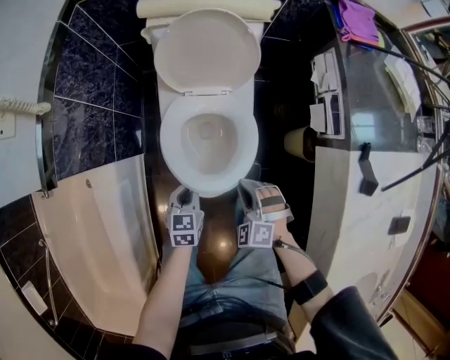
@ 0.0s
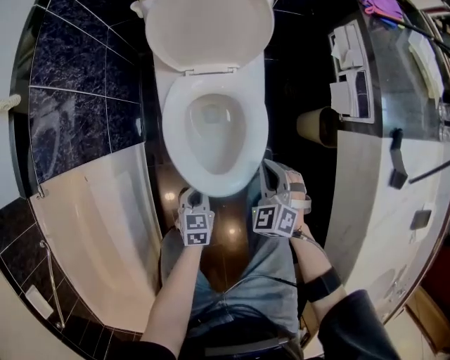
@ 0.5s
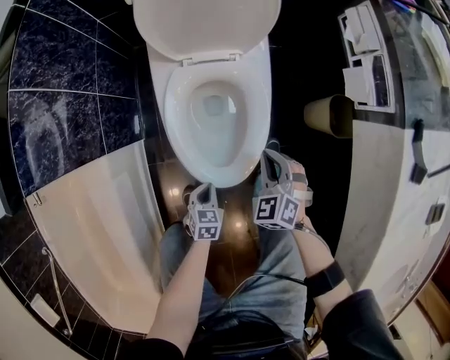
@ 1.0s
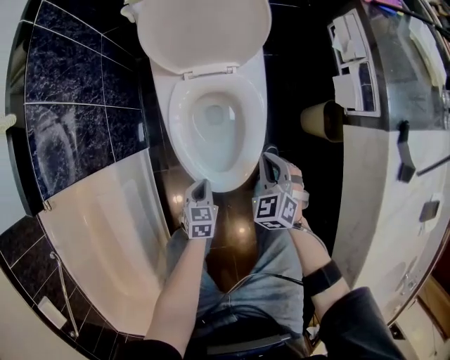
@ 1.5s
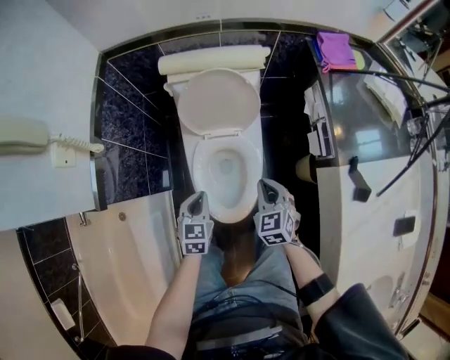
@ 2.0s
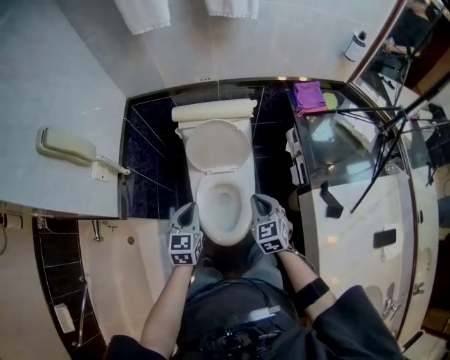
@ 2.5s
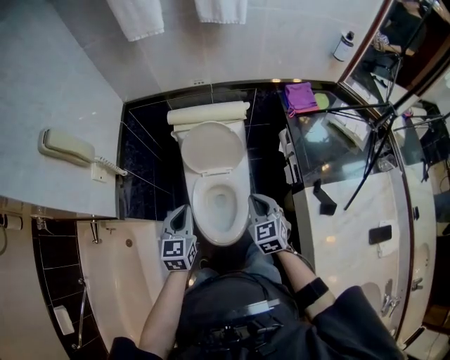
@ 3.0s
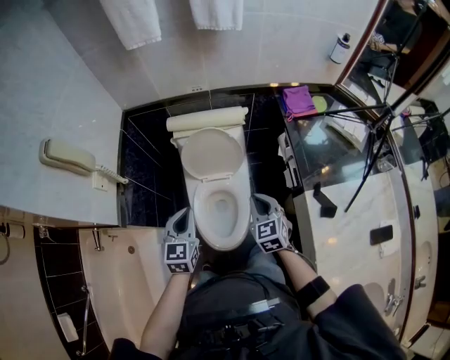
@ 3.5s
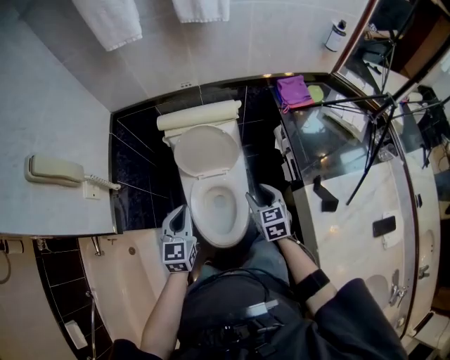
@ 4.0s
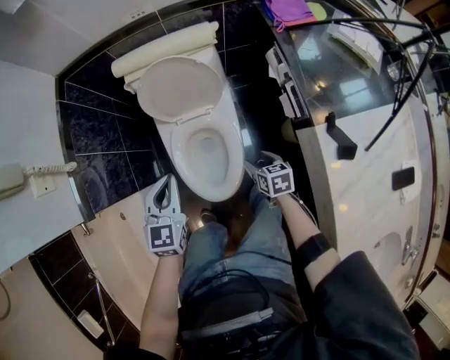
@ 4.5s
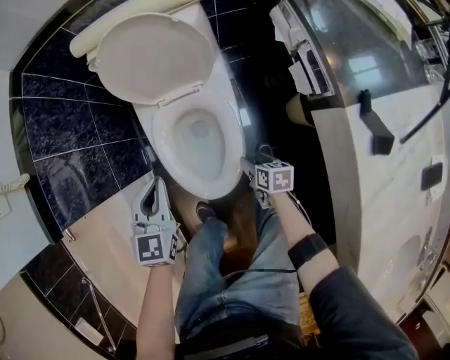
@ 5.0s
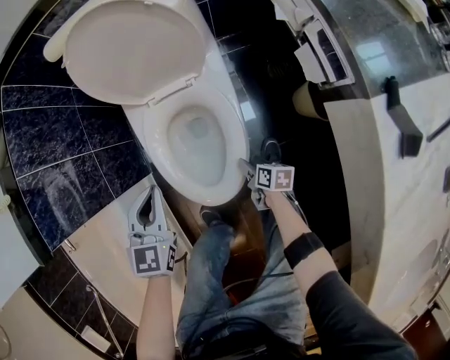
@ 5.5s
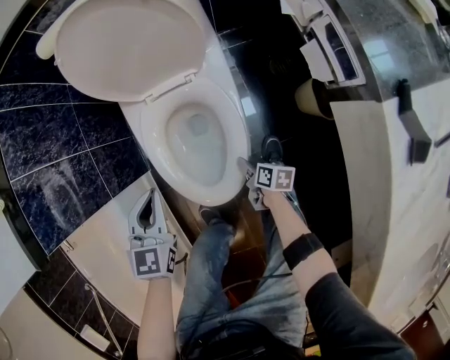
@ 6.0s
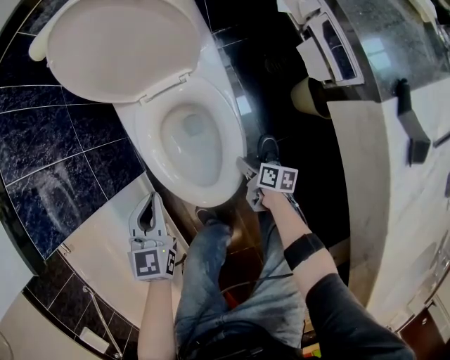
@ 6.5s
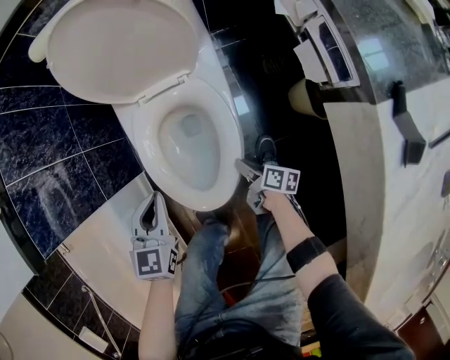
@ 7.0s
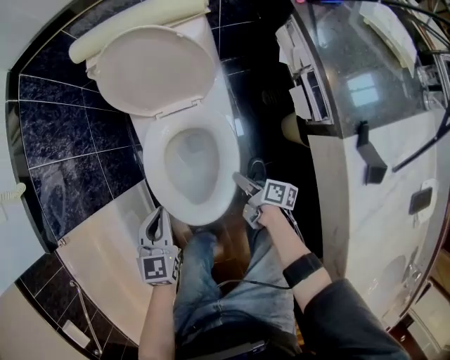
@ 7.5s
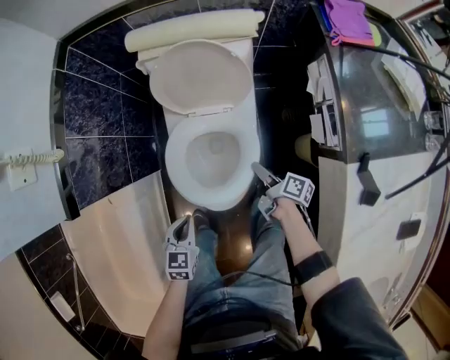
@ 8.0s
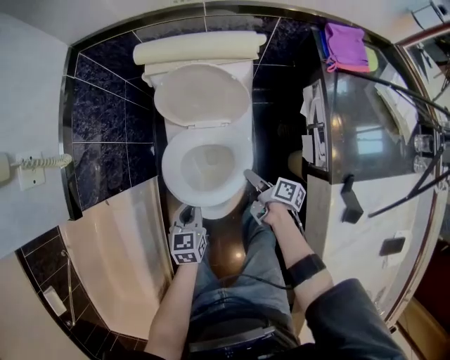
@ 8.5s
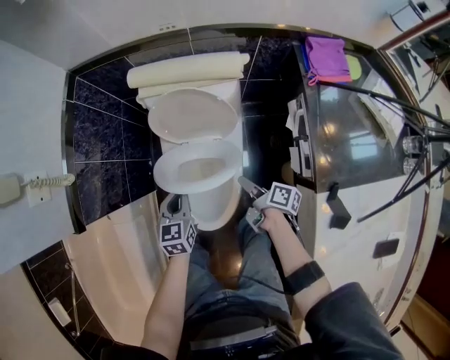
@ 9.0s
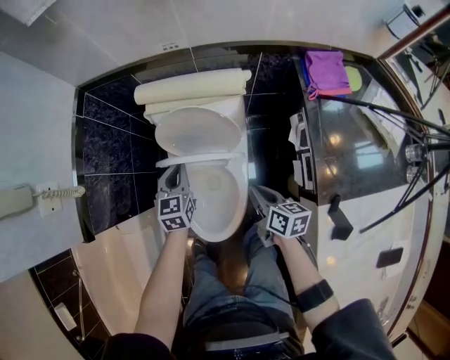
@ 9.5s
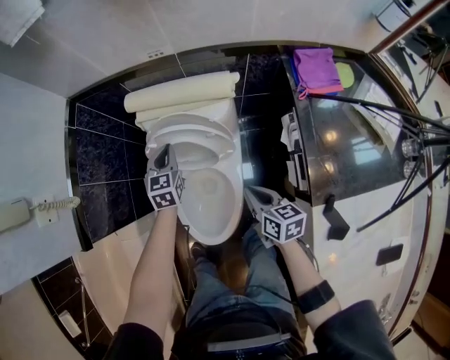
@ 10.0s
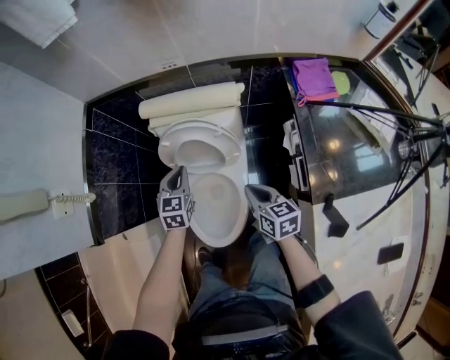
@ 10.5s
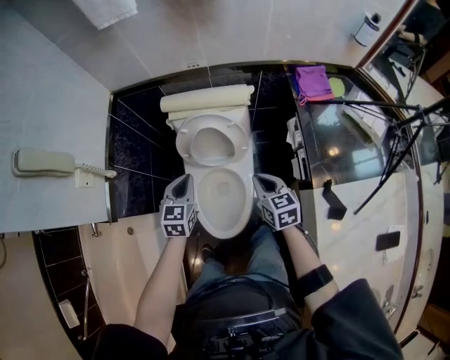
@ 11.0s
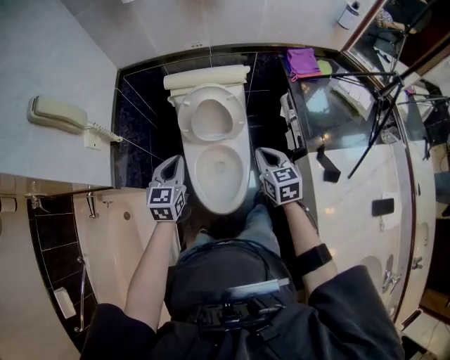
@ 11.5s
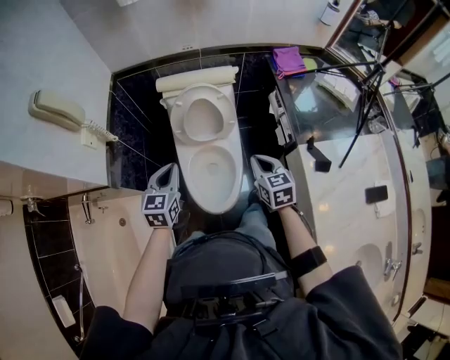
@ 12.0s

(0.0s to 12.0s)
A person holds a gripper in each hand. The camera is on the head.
0.0s - 2.0s: Both grippers move upward and forward, about 15 cm. The right gripper twists roughly 40 degrees clockwise, seen from behind.
2.0s - 4.0s: The left gripper is displaced upward by about 25 cm. Meanwhile the right gripper moves upward and to the right, some 15 cm, and opens.
4.0s - 6.0s: The right gripper heads downward, covering about 50 cm, and twists roughly 60 degrees clockwise, seen from behind. Meanwhile the left gripper goes some 30 cm downward.
6.0s - 8.0s: The right gripper moves upward and forward, roughly 25 cm, and changes its angle by some 20 degrees. Meanwhile the left gripper travels backward by approximately 10 cm.
8.0s - 10.0s: The left gripper shifts about 35 cm forward, and changes its angle by roughly 20 degrees. Meanwhile the right gripper travels upward and forward by about 20 cm, rotates around the line of its fingers by about 50 degrees, counterclockwise from behind, and closes up.
10.0s - 12.0s: The left gripper heads backward and upward, covering about 35 cm, while the right gripper moves backward and upward, roughly 20 cm, and rotates some 30 degrees.

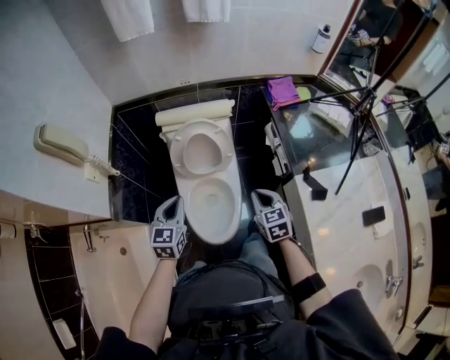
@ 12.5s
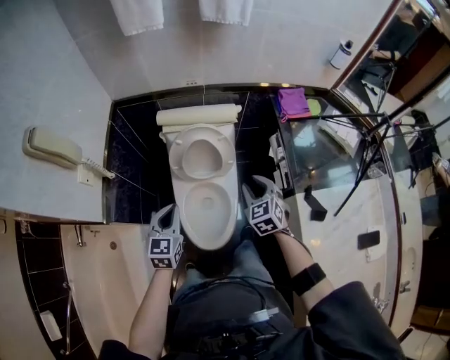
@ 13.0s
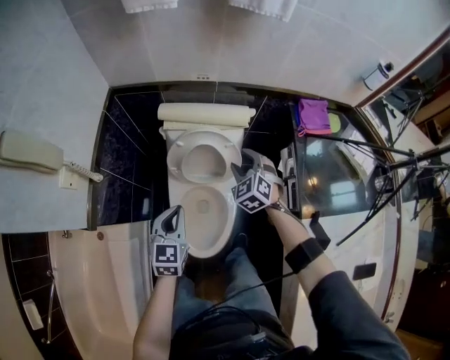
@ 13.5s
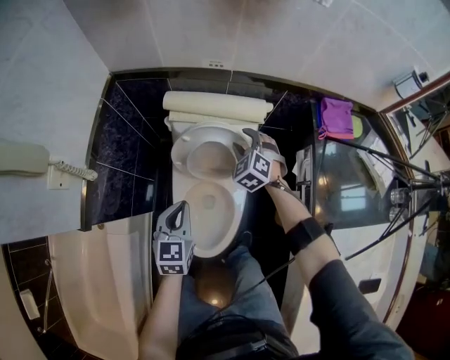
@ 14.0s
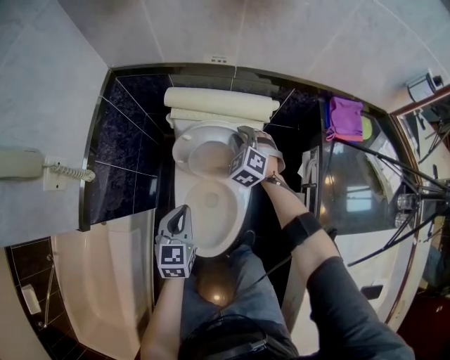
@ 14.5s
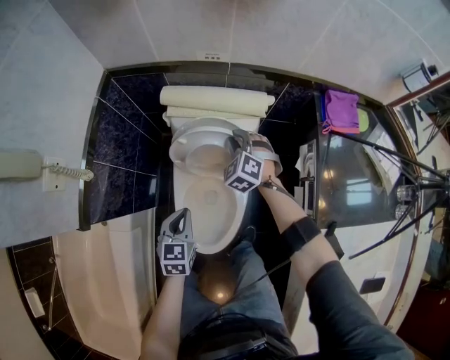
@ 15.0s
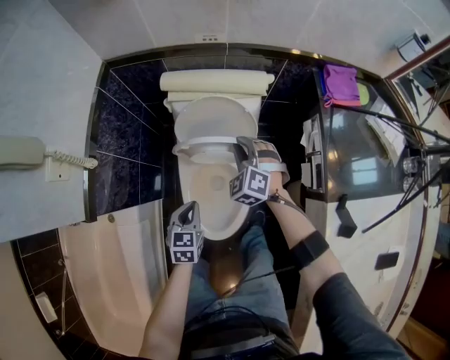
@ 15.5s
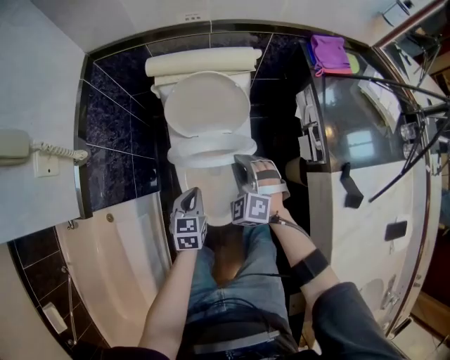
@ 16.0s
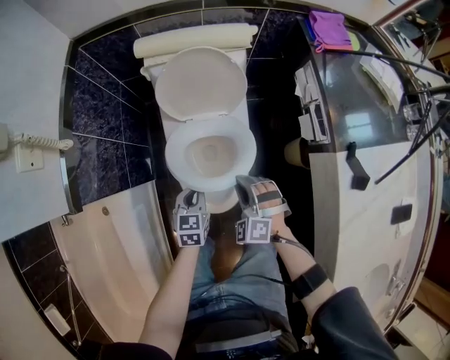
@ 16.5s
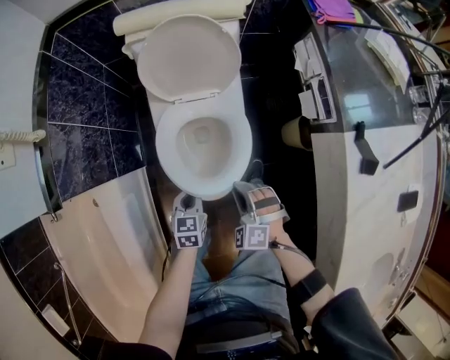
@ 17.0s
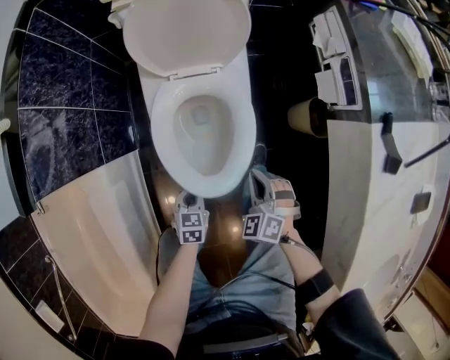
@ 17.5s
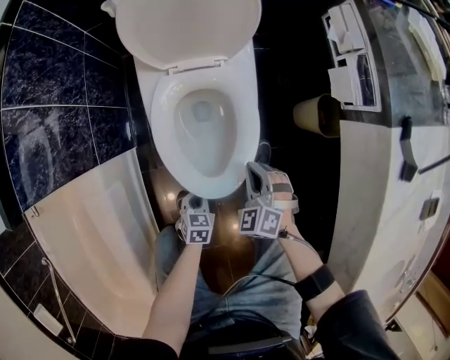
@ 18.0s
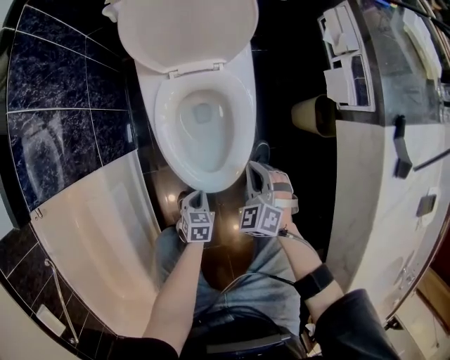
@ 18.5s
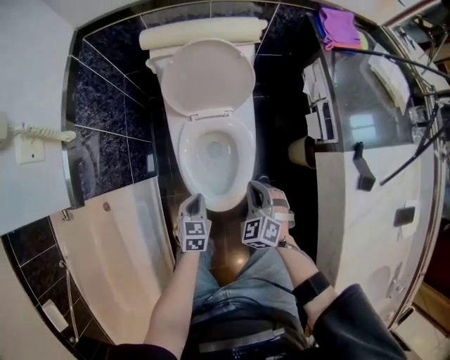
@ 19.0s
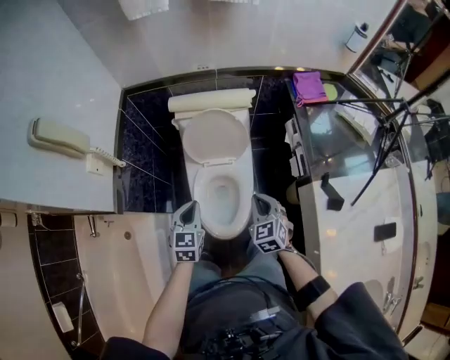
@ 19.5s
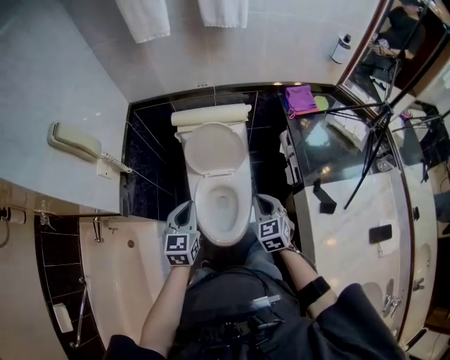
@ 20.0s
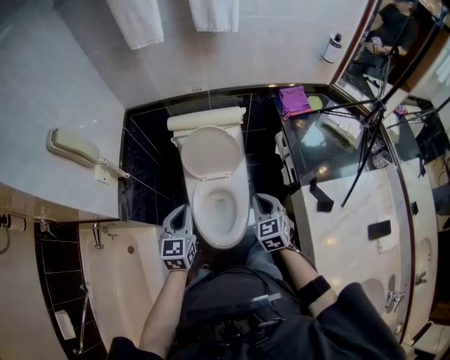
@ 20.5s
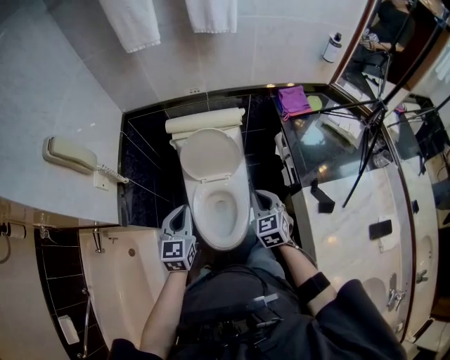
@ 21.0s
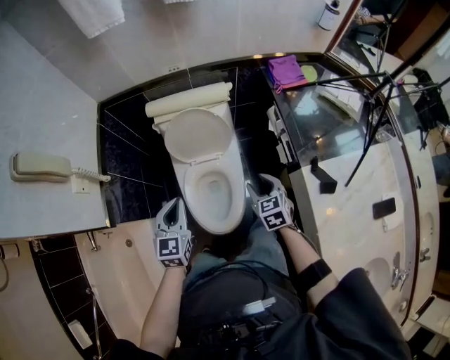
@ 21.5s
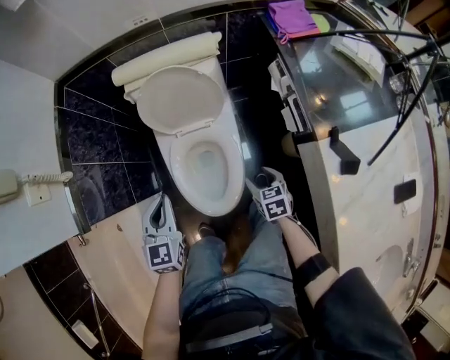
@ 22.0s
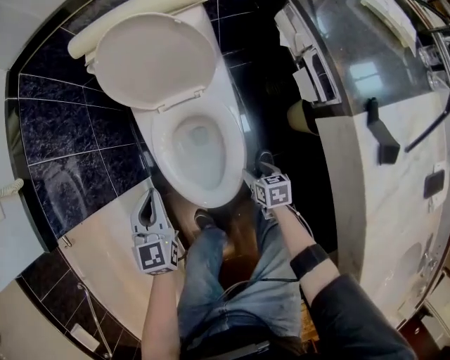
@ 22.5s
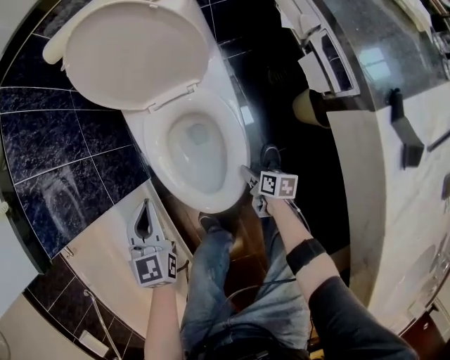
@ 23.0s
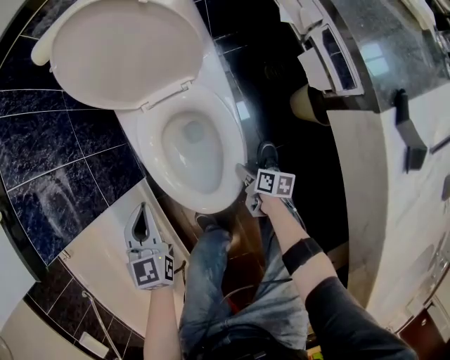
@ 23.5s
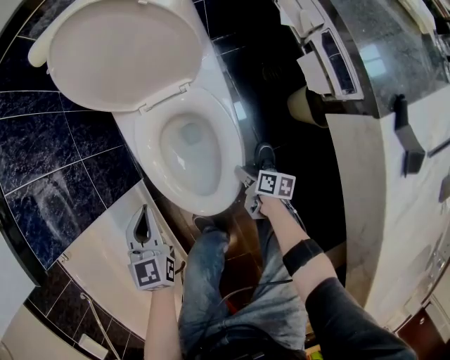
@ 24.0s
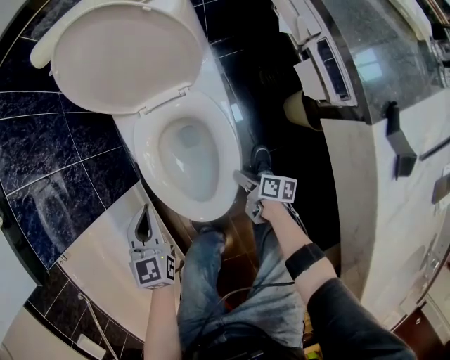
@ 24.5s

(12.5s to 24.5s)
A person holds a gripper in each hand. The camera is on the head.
12.5s - 14.5s: The right gripper shifts approximately 40 cm forward, twists roughly 50 degrees counterclockwise, seen from behind, and opens, then closes once more, while the left gripper heads downward and forward, covering roughly 15 cm.
14.5s - 16.5s: The left gripper shifts some 20 cm downward and backward, while the right gripper shifts some 35 cm backward.
16.5s - 18.5s: The left gripper goes some 30 cm downward and backward, and changes its angle by approximately 30 degrees. Meanwhile the right gripper is displaced downward by approximately 15 cm, and swivels approximately 20 degrees.
18.5s - 20.5s: The grippers both shift upward by approximately 50 cm. The right gripper rotates some 40 degrees, while the left gripper tips its fingers upward by about 40 degrees.
20.5s - 22.5s: The left gripper shifts about 30 cm downward; the right gripper shifts some 50 cm downward, rolls clockwise, seen from behind, by roughly 40 degrees, and opens up.
22.5s - 24.5s: Both grippers travel together downward, approximately 5 cm. The right gripper changes its angle by approximately 40 degrees, and closes up.

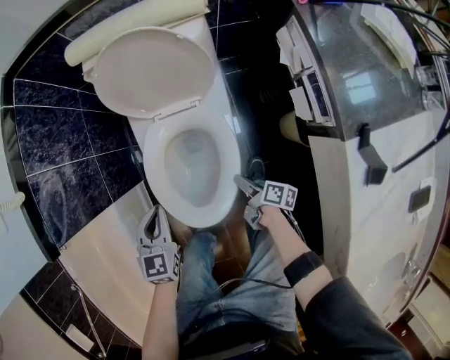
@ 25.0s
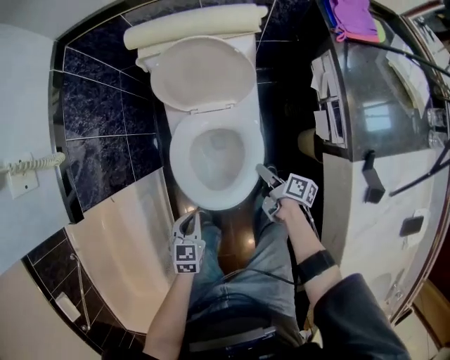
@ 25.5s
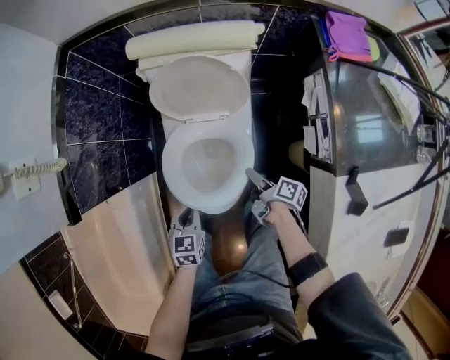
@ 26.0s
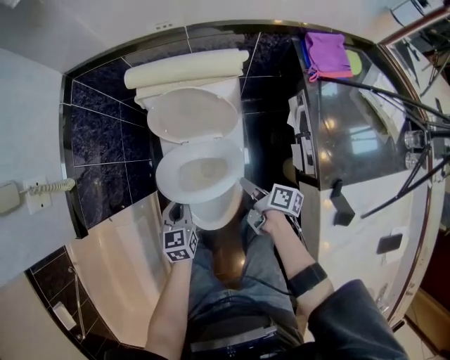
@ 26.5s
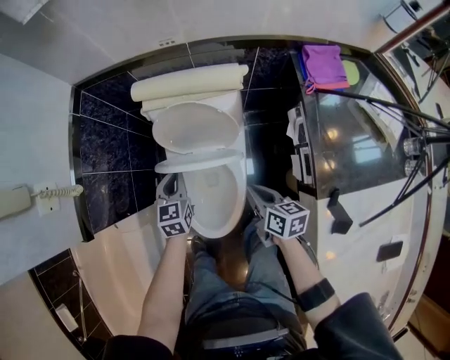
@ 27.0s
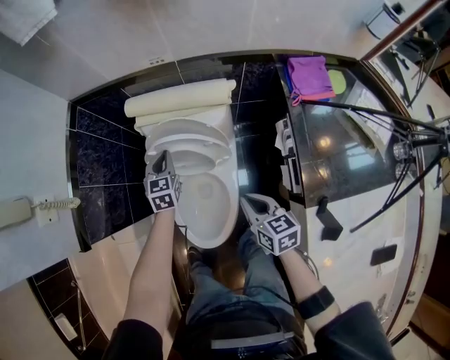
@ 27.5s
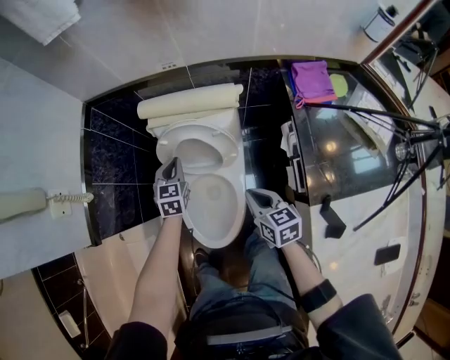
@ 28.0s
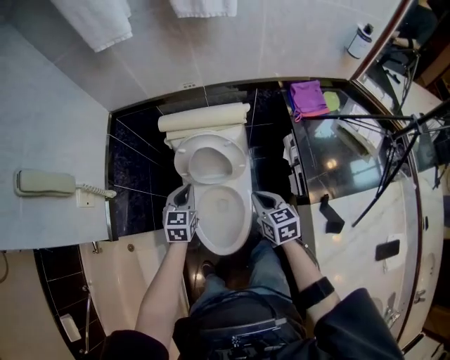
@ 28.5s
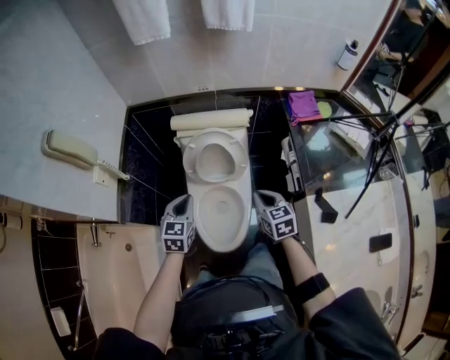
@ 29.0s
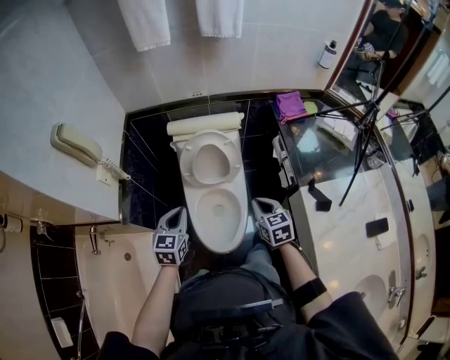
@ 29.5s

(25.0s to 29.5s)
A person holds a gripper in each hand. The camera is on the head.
25.0s - 27.0s: The left gripper travels forward, upward and to the right by approximately 20 cm. Meanwhile the right gripper moves upward and forward, some 30 cm, rotates around the line of its fingers by roughly 40 degrees, counterclockwise from behind, and closes.
27.0s - 29.5s: The left gripper heads upward, backward and to the left, covering roughly 30 cm. The right gripper heads upward and backward, covering some 20 cm, and turns by roughly 40 degrees.
